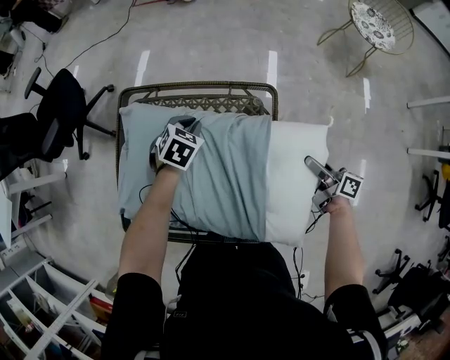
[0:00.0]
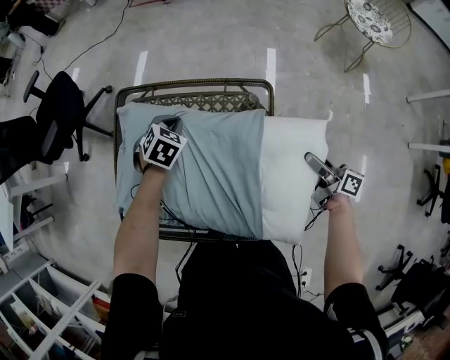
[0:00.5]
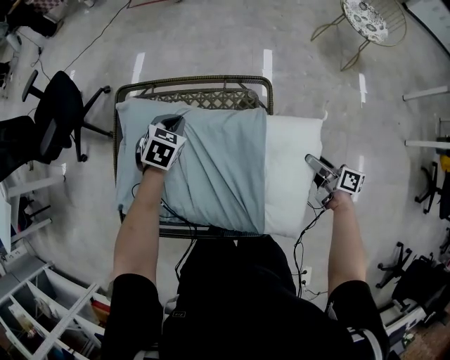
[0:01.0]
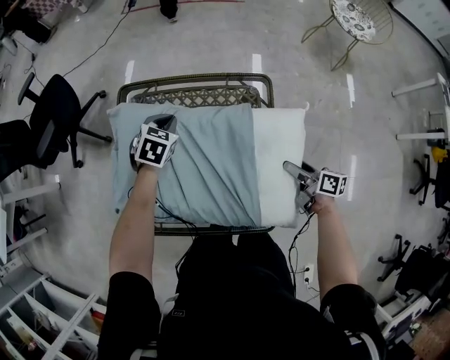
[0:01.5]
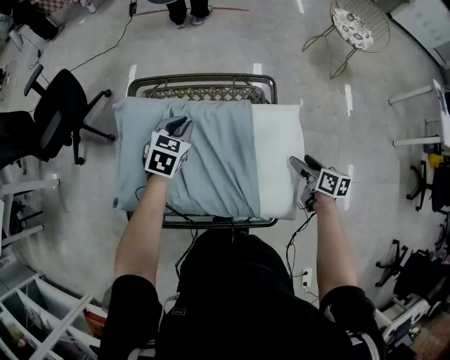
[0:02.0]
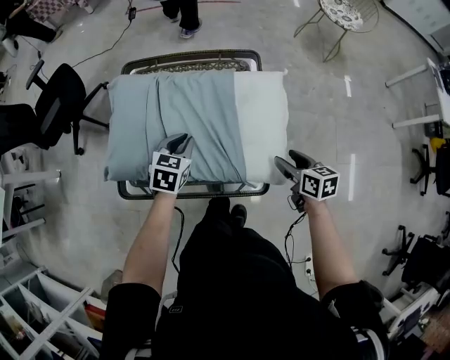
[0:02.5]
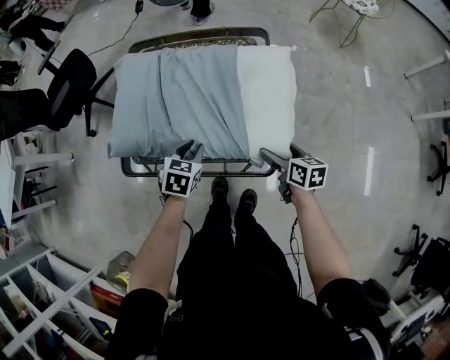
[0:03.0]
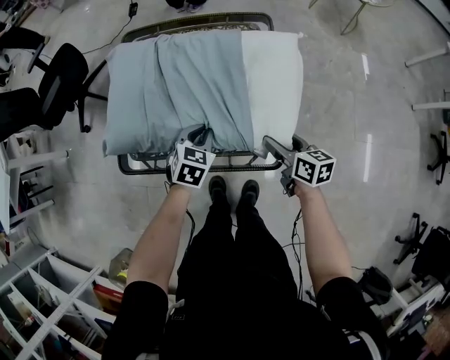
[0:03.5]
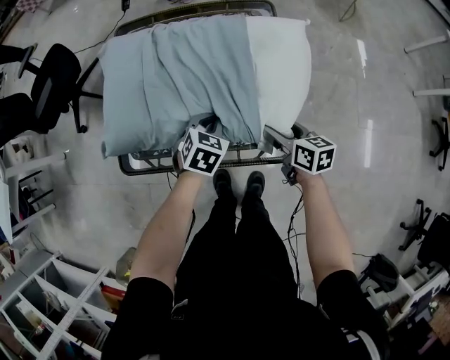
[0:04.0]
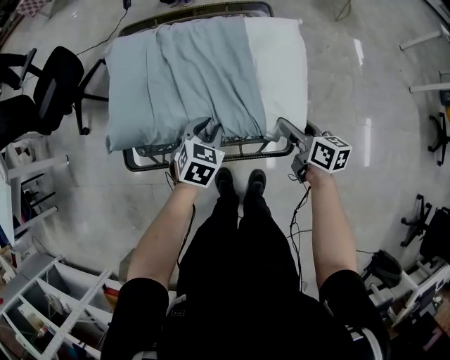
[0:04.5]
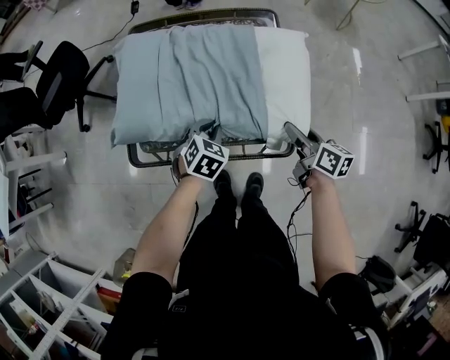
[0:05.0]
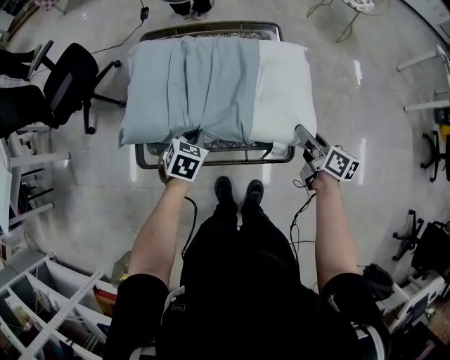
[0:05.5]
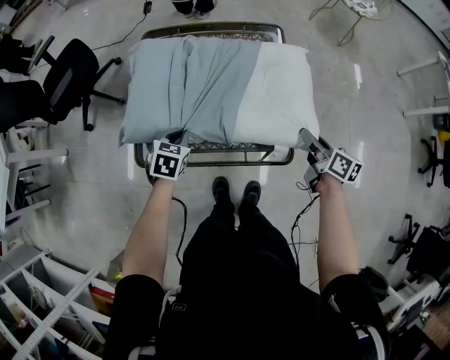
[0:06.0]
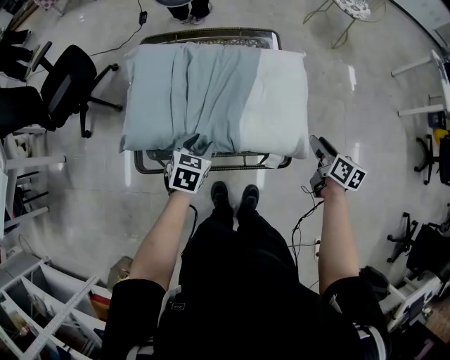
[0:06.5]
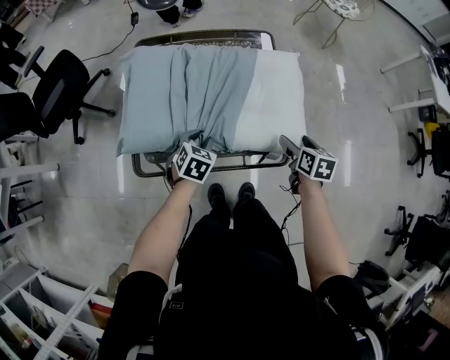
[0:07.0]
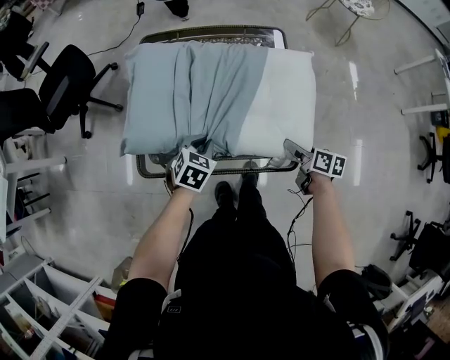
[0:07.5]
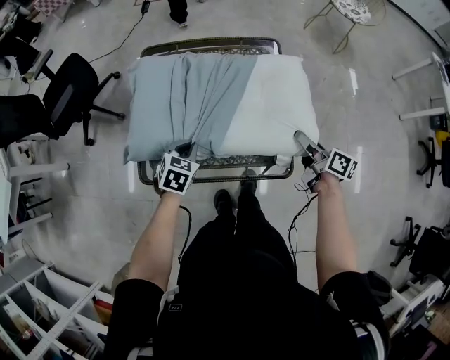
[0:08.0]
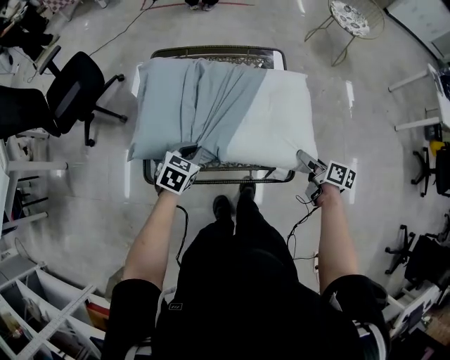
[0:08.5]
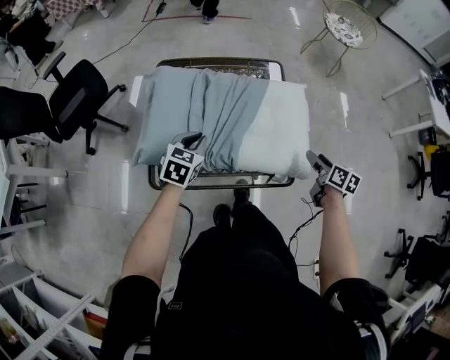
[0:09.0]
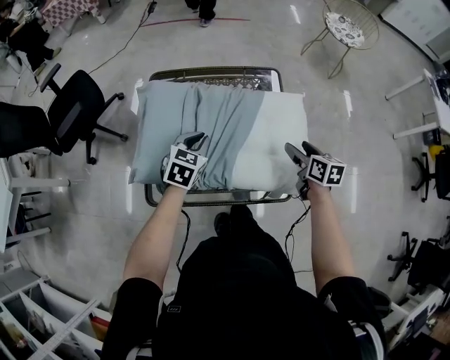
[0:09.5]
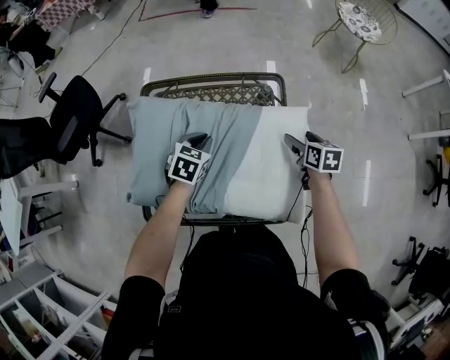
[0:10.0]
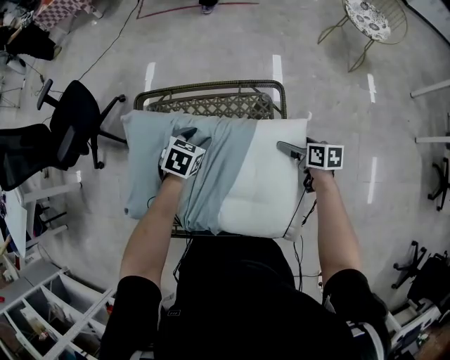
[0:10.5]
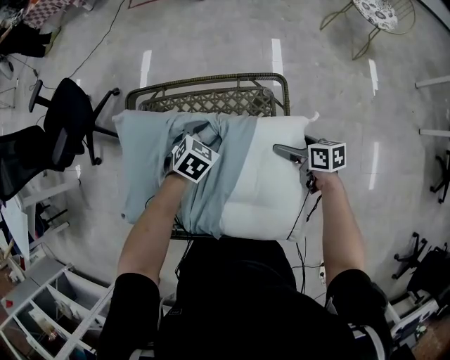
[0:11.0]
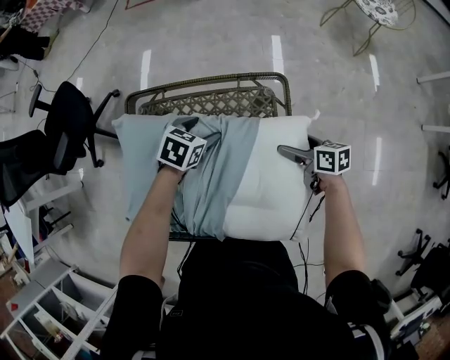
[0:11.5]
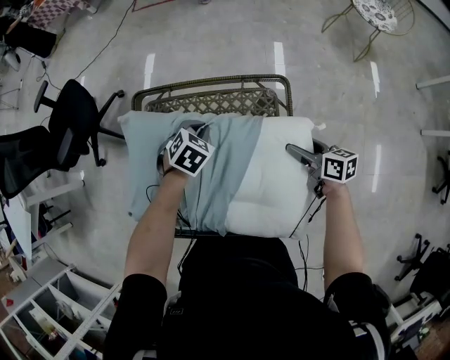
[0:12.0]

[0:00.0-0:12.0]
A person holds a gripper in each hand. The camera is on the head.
0:00.0 to 0:02.0: The left gripper is displaced to the left, upward and backward by approximately 10 cm. The right gripper travels backward and to the left by some 10 cm, and swivels about 30 degrees.
0:02.0 to 0:04.0: The right gripper goes roughly 20 cm backward, to the left and downward. Meanwhile the left gripper is displaced backward and downward by some 25 cm.
0:04.0 to 0:06.0: The right gripper shifts about 15 cm upward and to the right. Meanwhile the left gripper goes about 15 cm to the left.
0:06.0 to 0:08.0: The right gripper moves approximately 10 cm downward and comes back; the left gripper opens and closes again.
0:08.0 to 0:10.0: Both grippers move forward, about 20 cm. The right gripper swivels about 40 degrees.
0:10.0 to 0:12.0: The right gripper swivels roughly 30 degrees, while the left gripper shifts about 10 cm forward, and opens, then closes again.

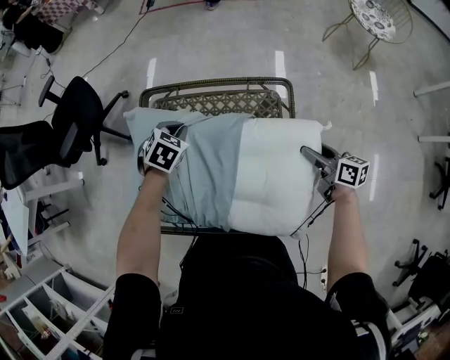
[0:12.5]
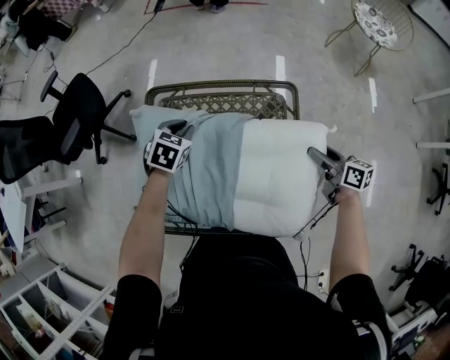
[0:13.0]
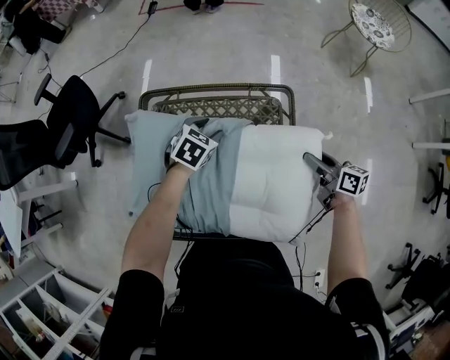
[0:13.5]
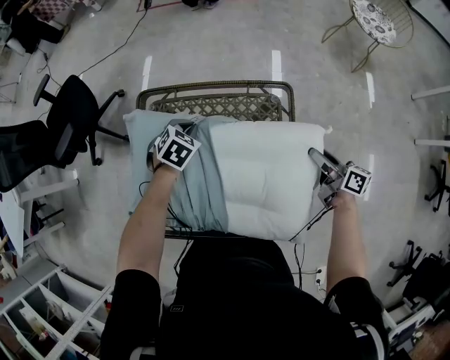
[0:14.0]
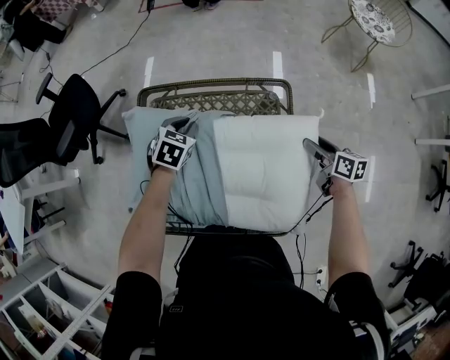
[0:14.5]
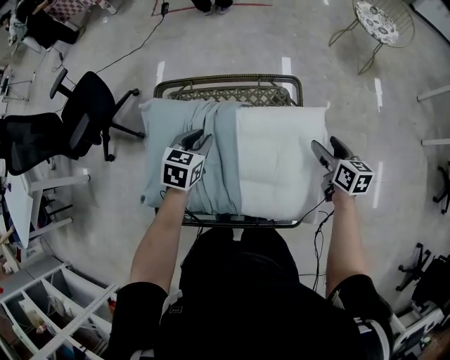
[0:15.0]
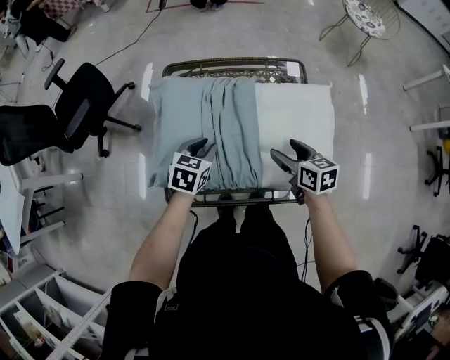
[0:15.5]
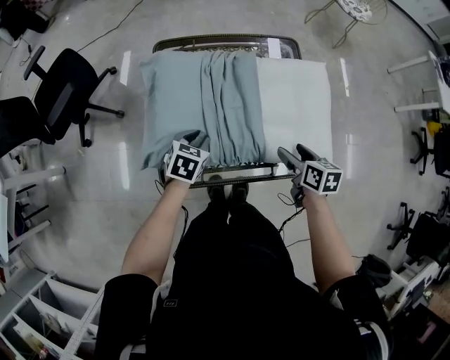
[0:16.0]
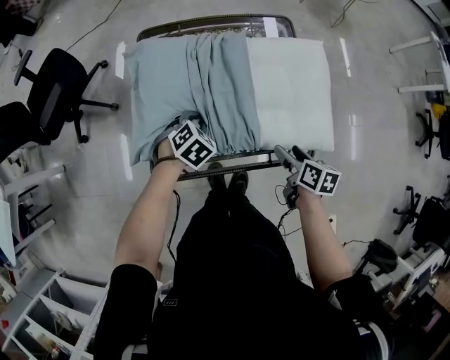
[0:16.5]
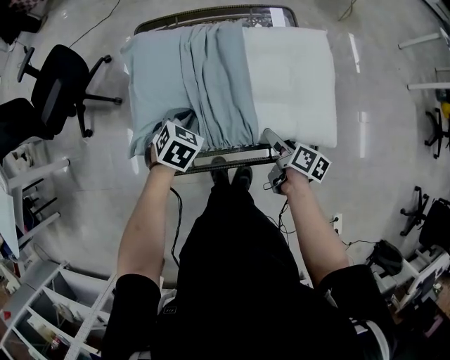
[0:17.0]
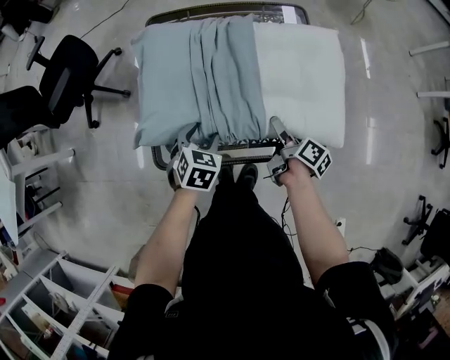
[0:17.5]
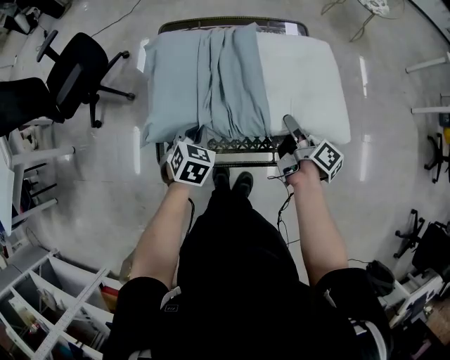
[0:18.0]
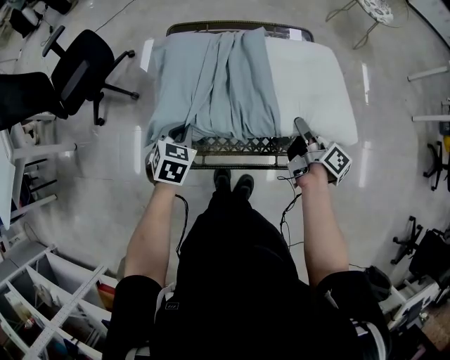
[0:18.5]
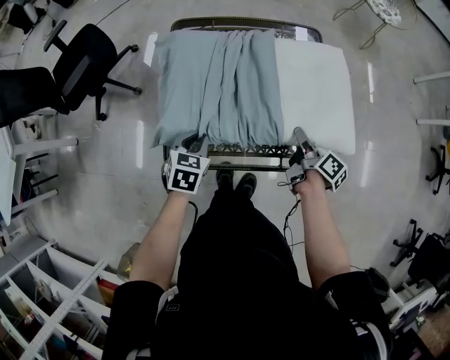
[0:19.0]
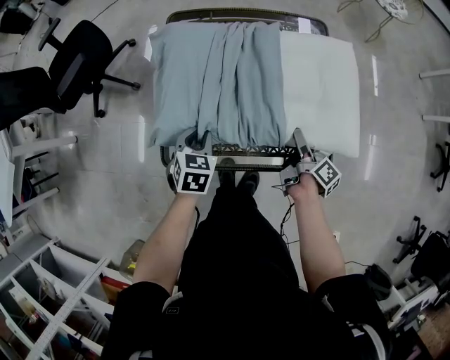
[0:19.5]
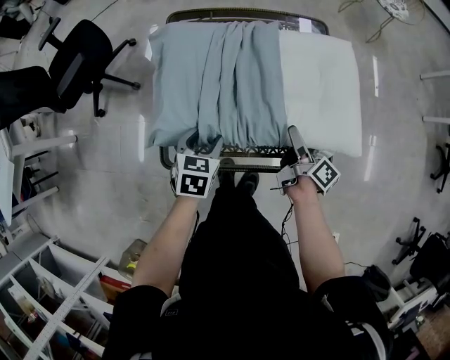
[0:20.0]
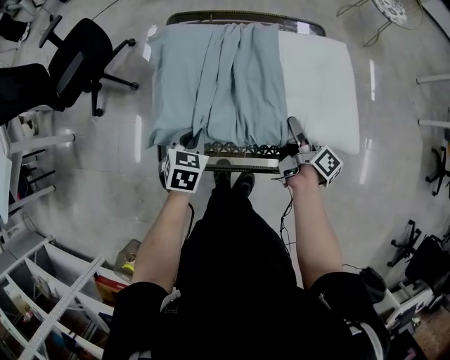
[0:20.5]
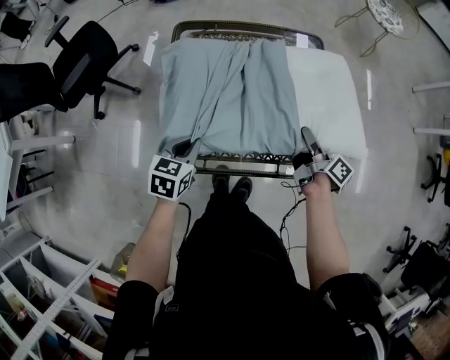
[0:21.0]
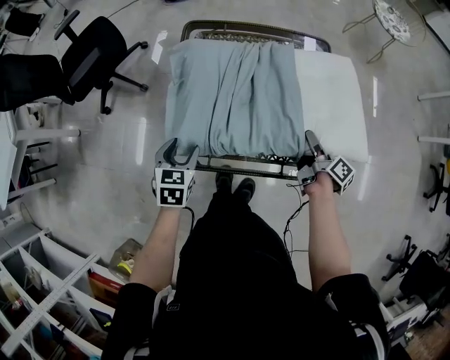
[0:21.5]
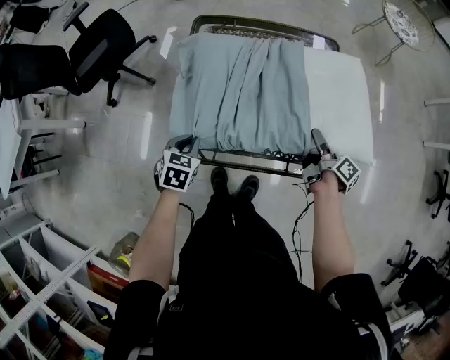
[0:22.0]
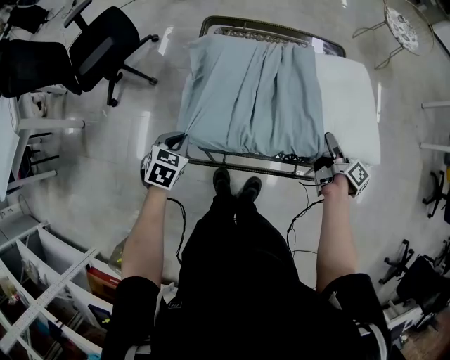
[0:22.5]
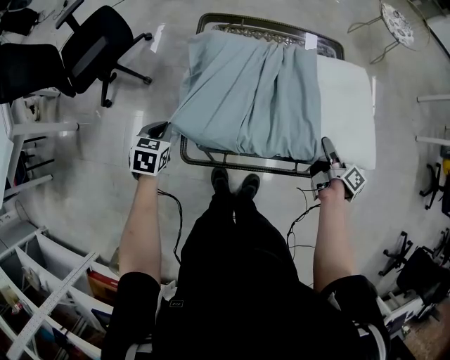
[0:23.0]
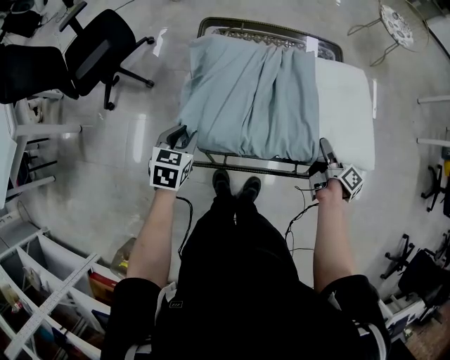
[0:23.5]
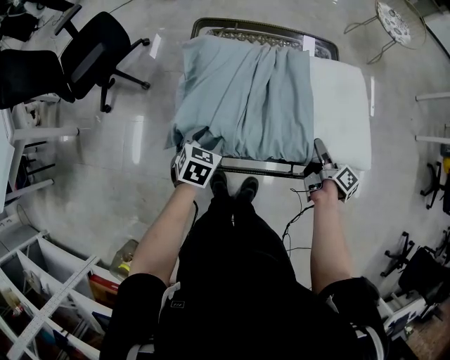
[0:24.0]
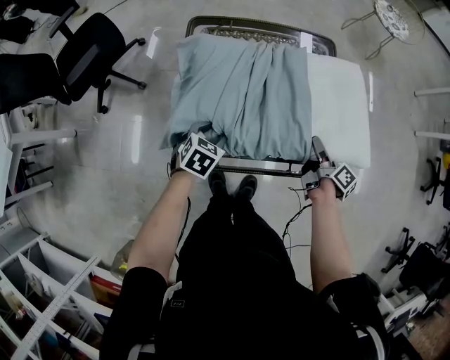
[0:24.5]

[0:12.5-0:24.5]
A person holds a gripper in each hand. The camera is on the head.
0:12.5 to 0:14.5: The left gripper reaches about 10 cm to the right, then returns, and opens and closes again.
0:14.5 to 0:16.5: The right gripper is displaced backward and to the left by about 35 cm, and rotates some 20 degrees. The left gripper travels backward by about 25 cm, and rotates roughly 30 degrees.
0:16.5 to 0:18.5: The right gripper goes about 10 cm forward and upward, swivels approximately 40 degrees, and closes. The left gripper goes some 10 cm to the left and upward, turns by some 30 degrees, and opens and closes again.
0:18.5 to 0:20.5: The left gripper opens and closes again; the right gripper moves downward, approximately 5 cm, and opens, then closes once more.
0:20.5 to 0:22.5: The right gripper goes roughly 5 cm to the right, while the left gripper moves to the left, some 15 cm, and opens and closes again.
0:22.5 to 0:24.5: The left gripper shifts about 15 cm to the right and forward, and opens.

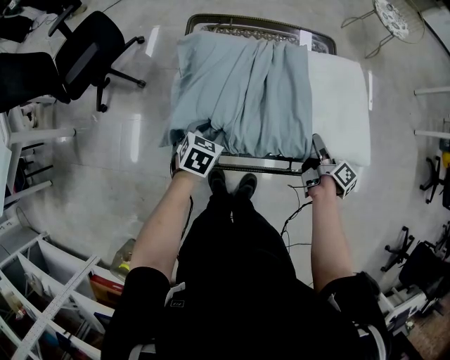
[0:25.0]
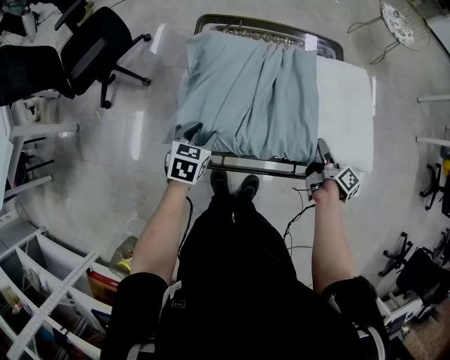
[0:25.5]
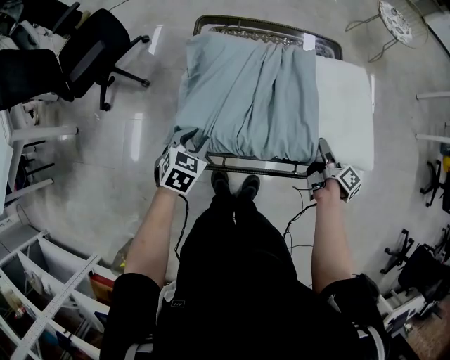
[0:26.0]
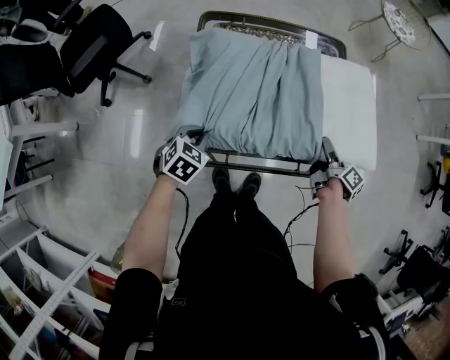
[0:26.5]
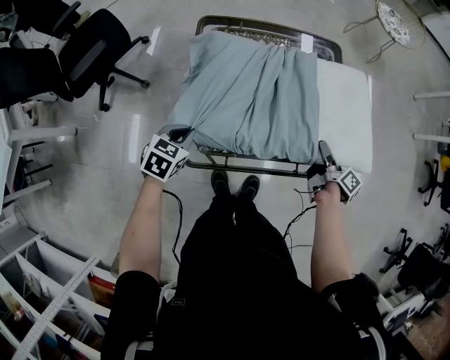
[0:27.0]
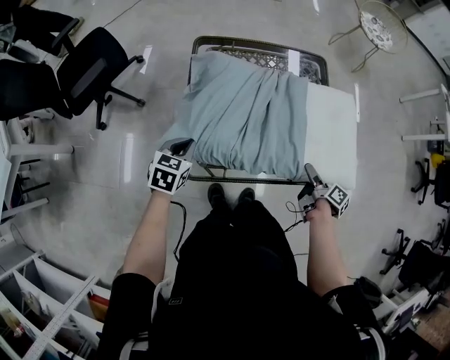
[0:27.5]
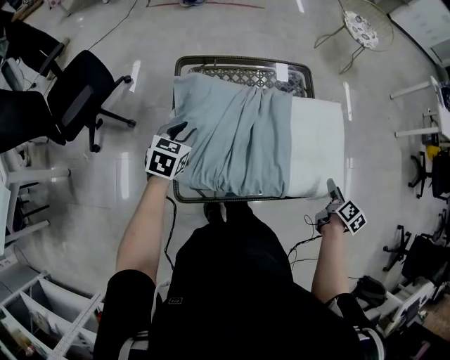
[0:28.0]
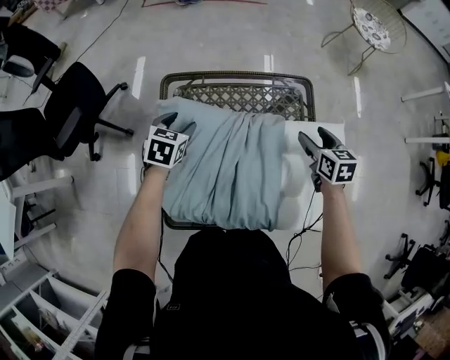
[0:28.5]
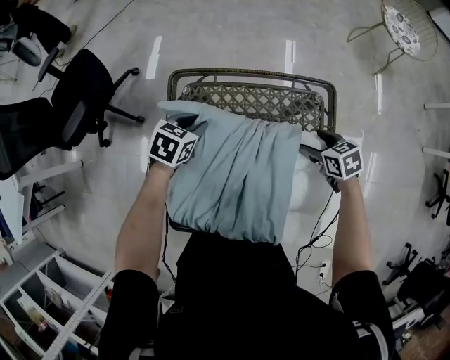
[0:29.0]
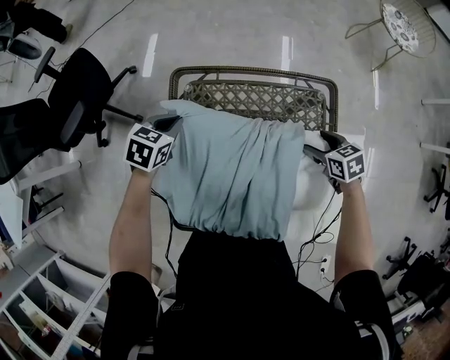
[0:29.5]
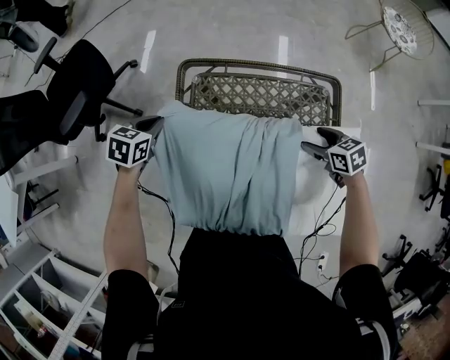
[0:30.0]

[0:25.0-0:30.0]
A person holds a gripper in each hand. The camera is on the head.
0:25.0 to 0:27.5: The right gripper moves backward, some 10 cm; the left gripper is displaced to the left and upward by roughly 10 cm, and closes up.
0:27.5 to 0:30.0: The left gripper shifts by roughly 25 cm, and opens, then closes once more; the right gripper travels upward and back again, roughly 10 cm each way, and rolls counterclockwise, seen from behind, by roughly 80 degrees.
